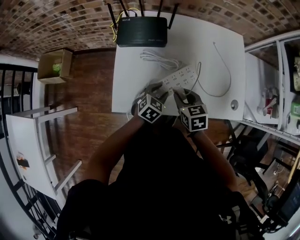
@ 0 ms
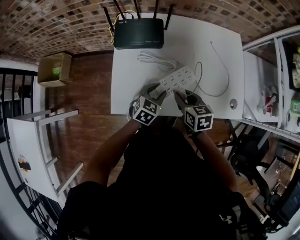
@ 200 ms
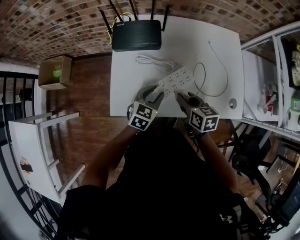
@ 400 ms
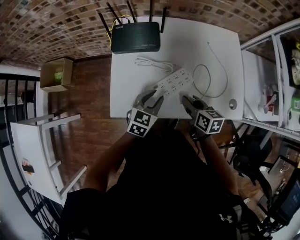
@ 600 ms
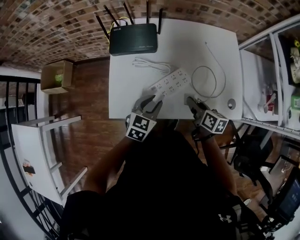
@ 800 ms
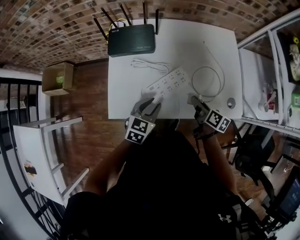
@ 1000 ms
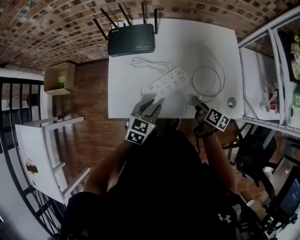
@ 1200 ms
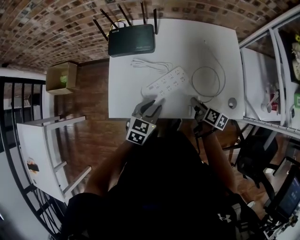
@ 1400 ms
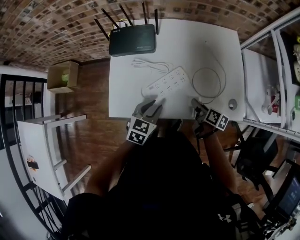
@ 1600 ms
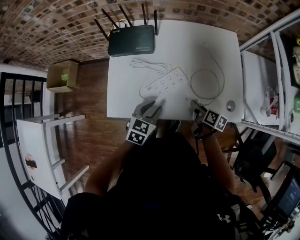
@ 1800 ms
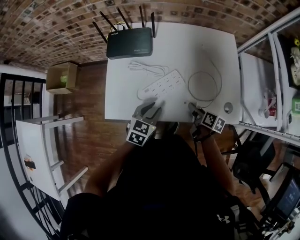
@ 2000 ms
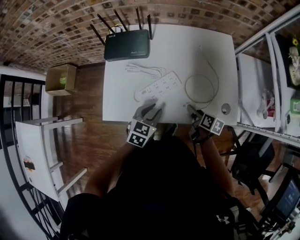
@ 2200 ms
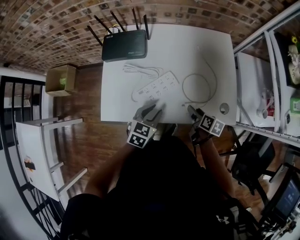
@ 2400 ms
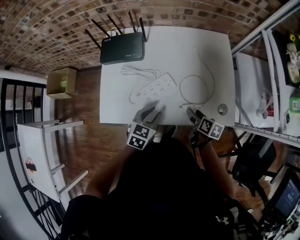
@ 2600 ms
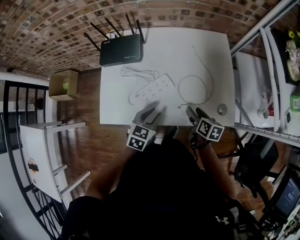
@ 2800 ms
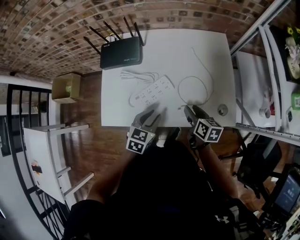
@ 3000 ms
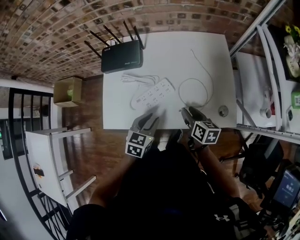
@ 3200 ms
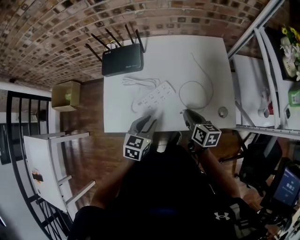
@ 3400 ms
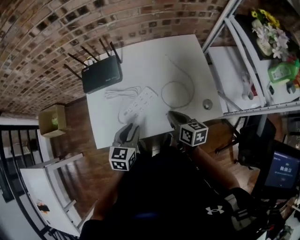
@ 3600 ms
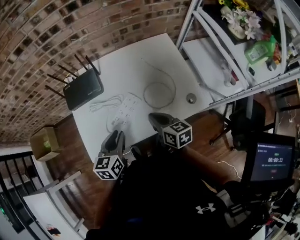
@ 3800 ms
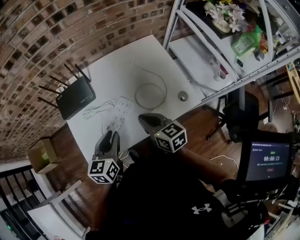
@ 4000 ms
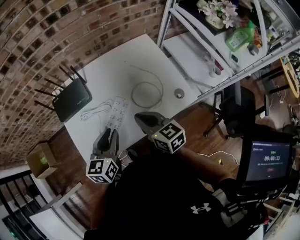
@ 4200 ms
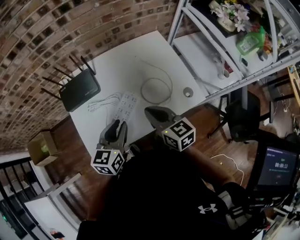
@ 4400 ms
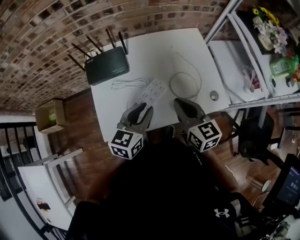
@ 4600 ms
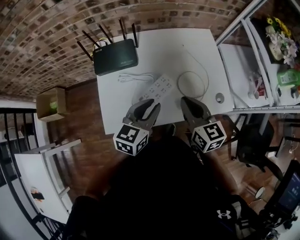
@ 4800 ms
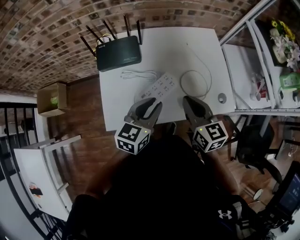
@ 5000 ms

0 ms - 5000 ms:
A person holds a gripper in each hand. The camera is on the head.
0 ms - 1600 ms: The right gripper goes some 15 cm to the right, and twists roughly 50 degrees clockwise, seen from behind, while the left gripper goes about 5 cm upward.
1600 ms - 3400 ms: The right gripper is displaced upward by about 10 cm, and opens, then closes once more.
3400 ms - 5000 ms: The right gripper shifts some 15 cm upward and to the left, and rotates approximately 30 degrees. Meanwhile the left gripper moves upward, some 10 cm.

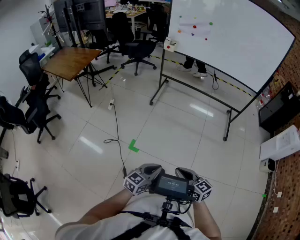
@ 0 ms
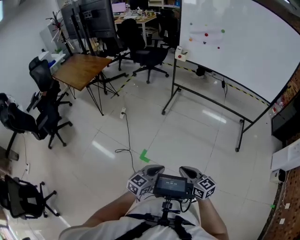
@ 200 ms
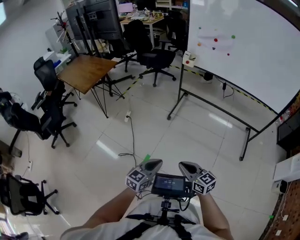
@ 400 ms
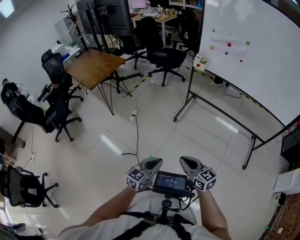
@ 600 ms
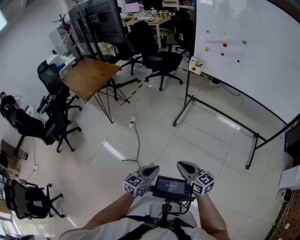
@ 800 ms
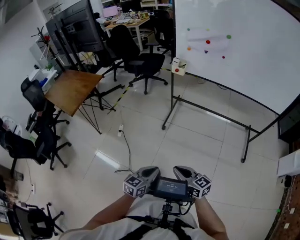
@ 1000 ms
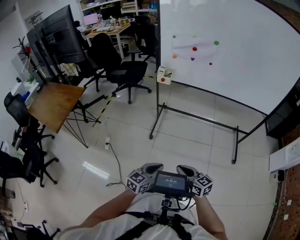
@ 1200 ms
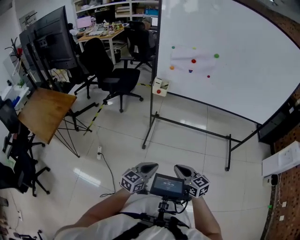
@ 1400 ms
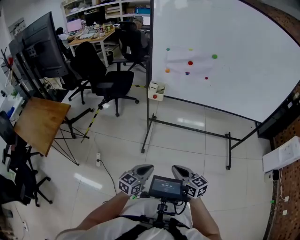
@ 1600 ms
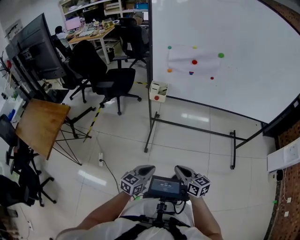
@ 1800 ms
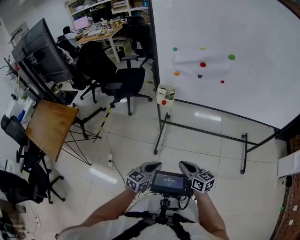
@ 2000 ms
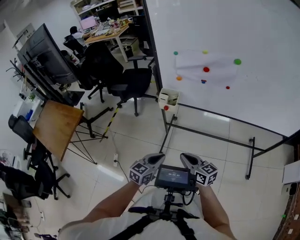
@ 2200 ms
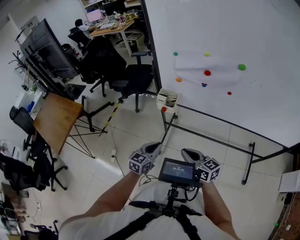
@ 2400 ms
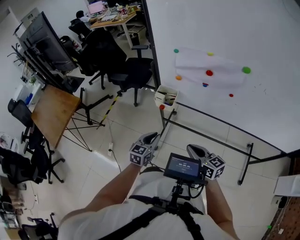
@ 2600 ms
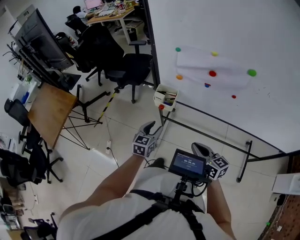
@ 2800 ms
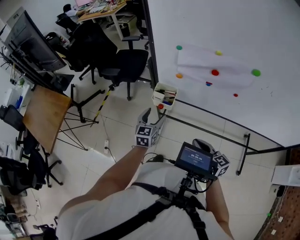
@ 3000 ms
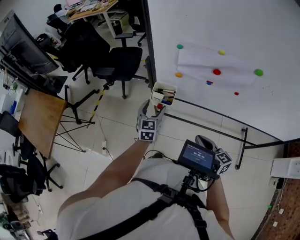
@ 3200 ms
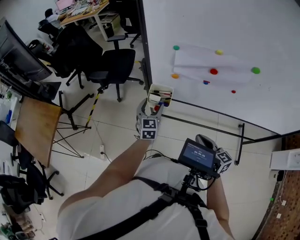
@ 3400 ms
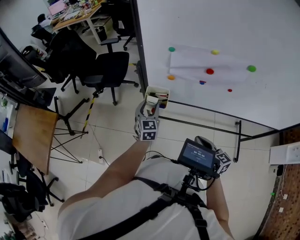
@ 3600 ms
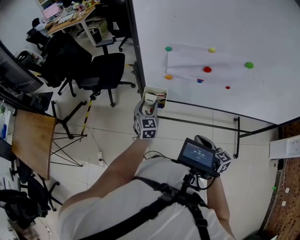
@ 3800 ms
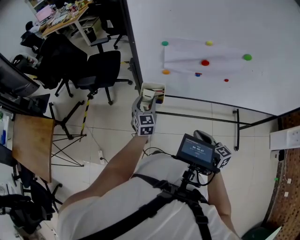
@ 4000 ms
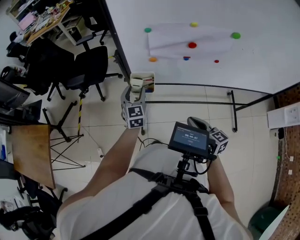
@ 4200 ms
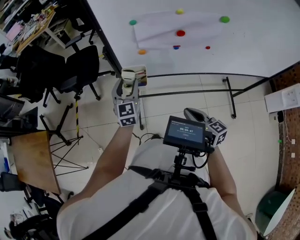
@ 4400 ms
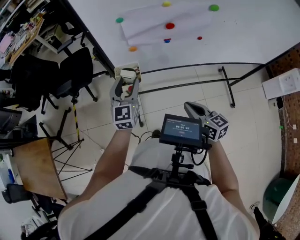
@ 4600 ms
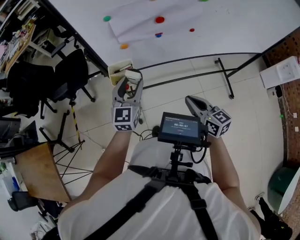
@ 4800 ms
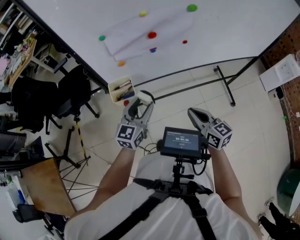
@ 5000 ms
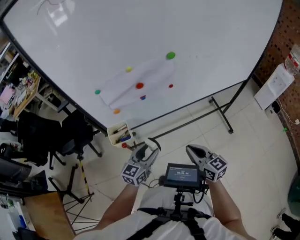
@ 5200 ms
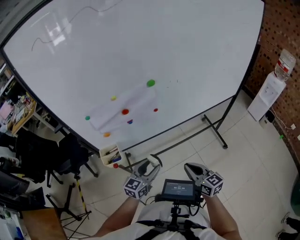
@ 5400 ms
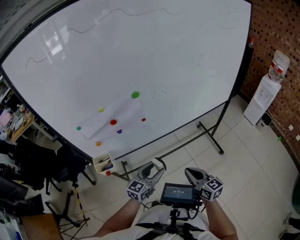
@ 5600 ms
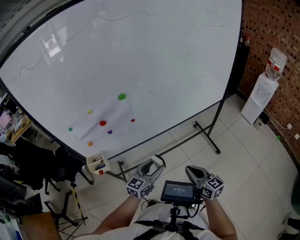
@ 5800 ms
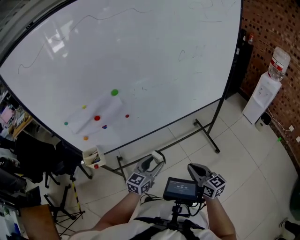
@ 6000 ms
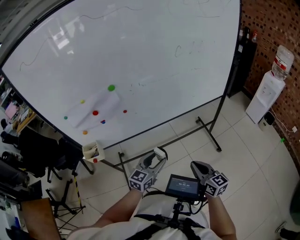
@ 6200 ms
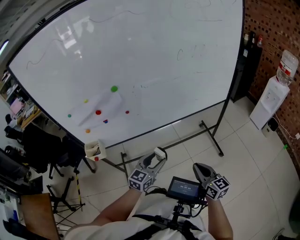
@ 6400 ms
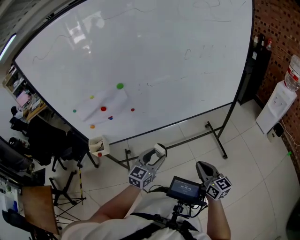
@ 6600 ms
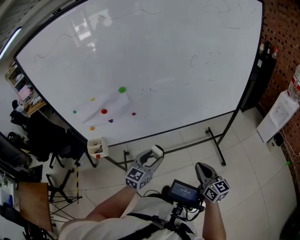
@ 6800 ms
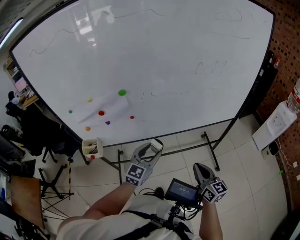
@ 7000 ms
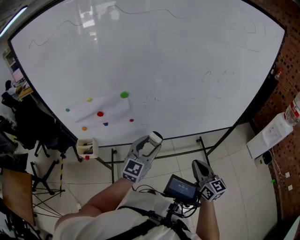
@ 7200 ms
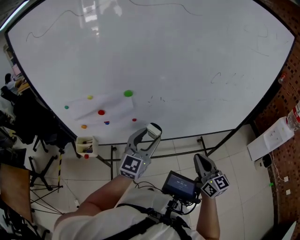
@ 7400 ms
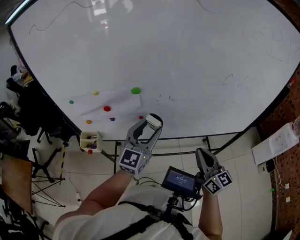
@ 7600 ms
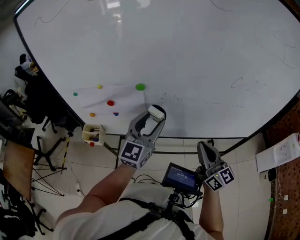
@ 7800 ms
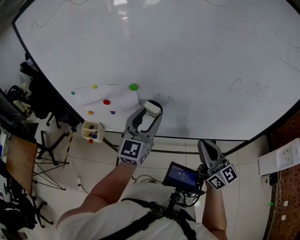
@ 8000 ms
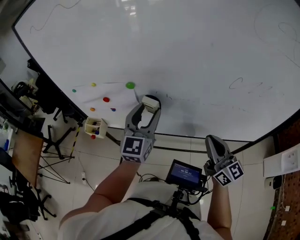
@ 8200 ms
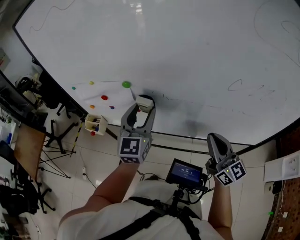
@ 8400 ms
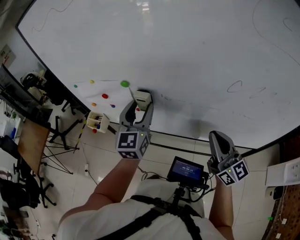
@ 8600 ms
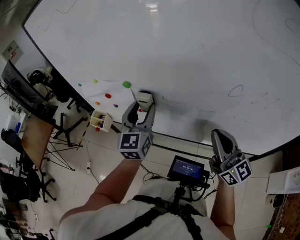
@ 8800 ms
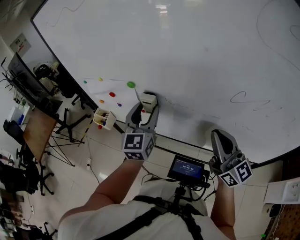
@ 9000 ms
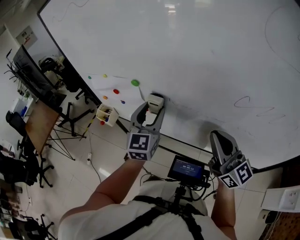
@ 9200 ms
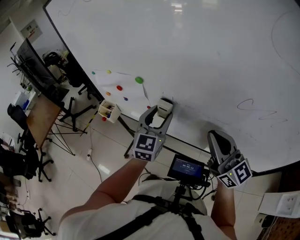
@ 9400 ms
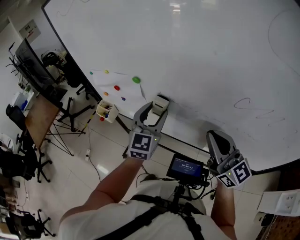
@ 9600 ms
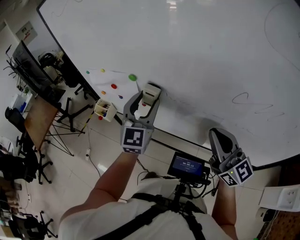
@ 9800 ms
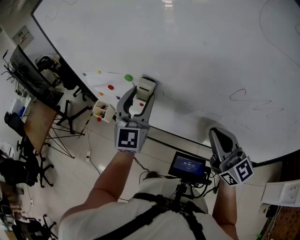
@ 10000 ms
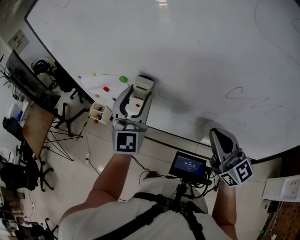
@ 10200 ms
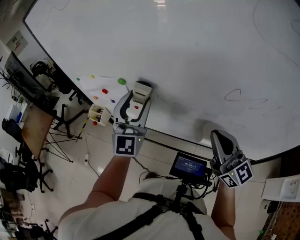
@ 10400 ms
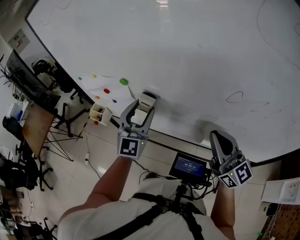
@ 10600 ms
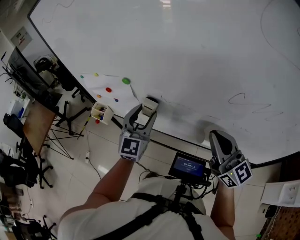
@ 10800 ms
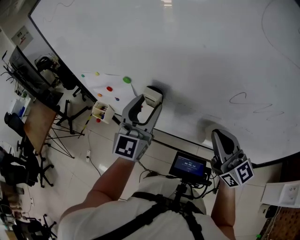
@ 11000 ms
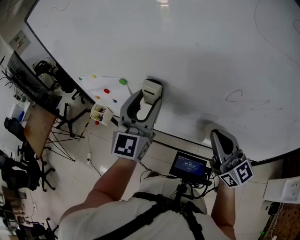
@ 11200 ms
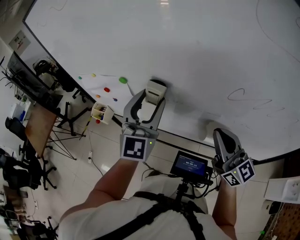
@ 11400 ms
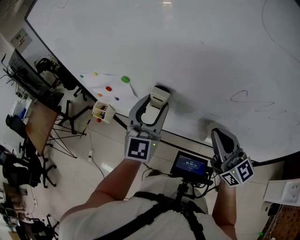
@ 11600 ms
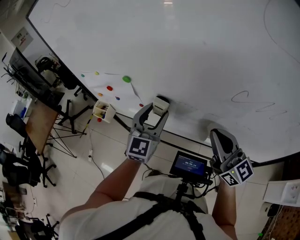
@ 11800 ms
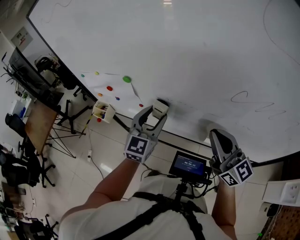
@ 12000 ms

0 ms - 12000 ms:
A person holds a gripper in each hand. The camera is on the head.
0 ms - 1600 ms: The pair of grippers is taken forward, approximately 70 cm.
1600 ms - 3000 ms: The pair of grippers is taken forward, about 50 cm. The left gripper rotates approximately 30 degrees, and opens its fingers.
3000 ms - 4400 ms: The left gripper goes roughly 10 cm forward and upward.
4400 ms - 6000 ms: The right gripper shifts by roughly 40 cm, and swivels about 30 degrees. Meanwhile the left gripper changes place by roughly 50 cm, and rotates some 50 degrees.
6000 ms - 7600 ms: The two grippers go roughly 25 cm forward and upward. The left gripper changes its angle by roughly 30 degrees.
7600 ms - 9000 ms: The right gripper changes place by roughly 20 cm, and swivels some 30 degrees, while the left gripper moves roughly 10 cm, and turns by some 40 degrees.
9000 ms - 10400 ms: The left gripper moves upward, some 5 cm, and turns by roughly 30 degrees.
10400 ms - 12000 ms: The left gripper goes up and down, some 10 cm each way, reversing 2 times, and turns by roughly 30 degrees.

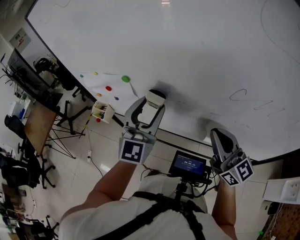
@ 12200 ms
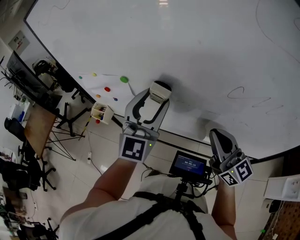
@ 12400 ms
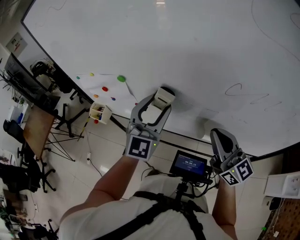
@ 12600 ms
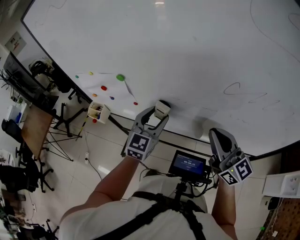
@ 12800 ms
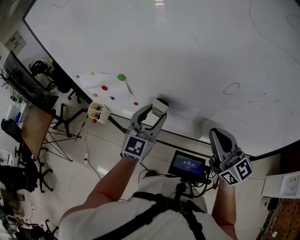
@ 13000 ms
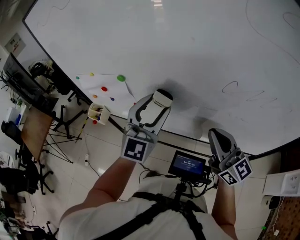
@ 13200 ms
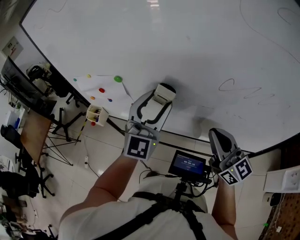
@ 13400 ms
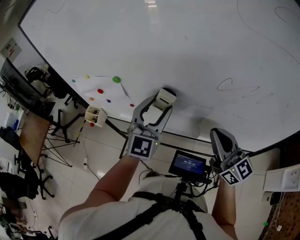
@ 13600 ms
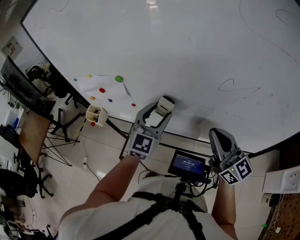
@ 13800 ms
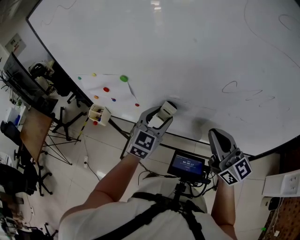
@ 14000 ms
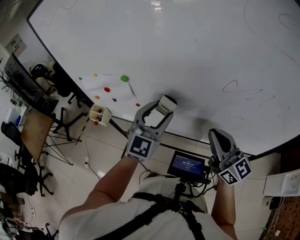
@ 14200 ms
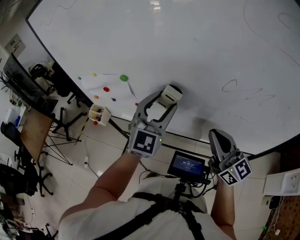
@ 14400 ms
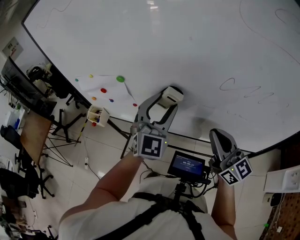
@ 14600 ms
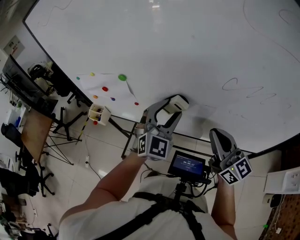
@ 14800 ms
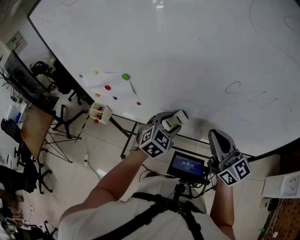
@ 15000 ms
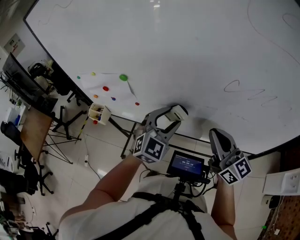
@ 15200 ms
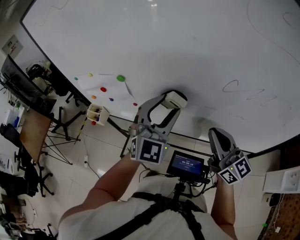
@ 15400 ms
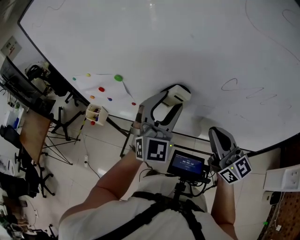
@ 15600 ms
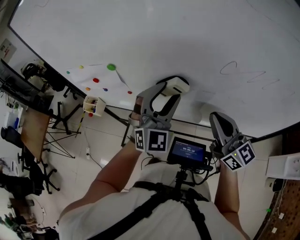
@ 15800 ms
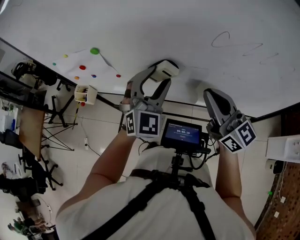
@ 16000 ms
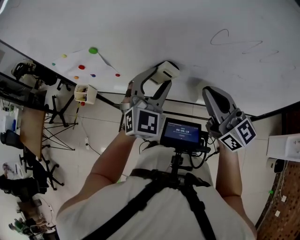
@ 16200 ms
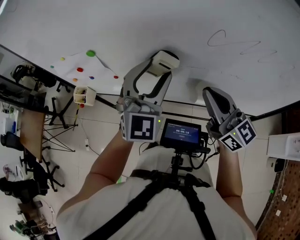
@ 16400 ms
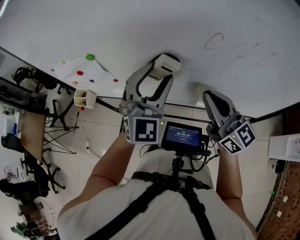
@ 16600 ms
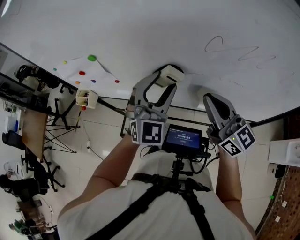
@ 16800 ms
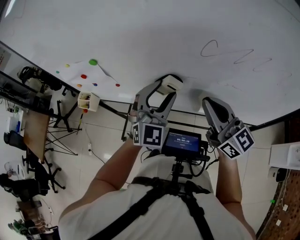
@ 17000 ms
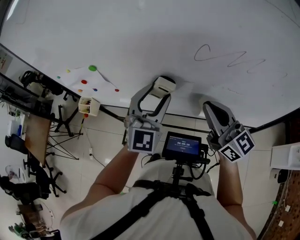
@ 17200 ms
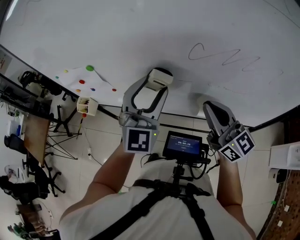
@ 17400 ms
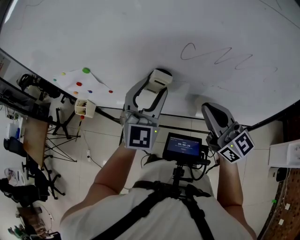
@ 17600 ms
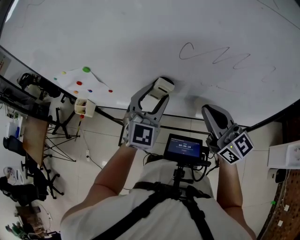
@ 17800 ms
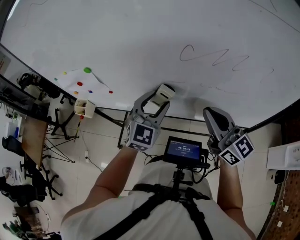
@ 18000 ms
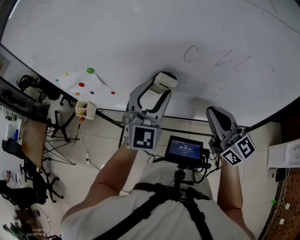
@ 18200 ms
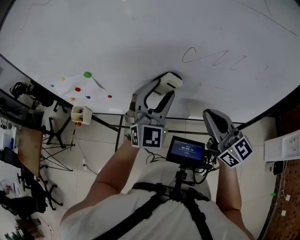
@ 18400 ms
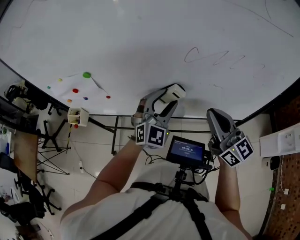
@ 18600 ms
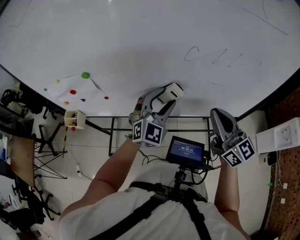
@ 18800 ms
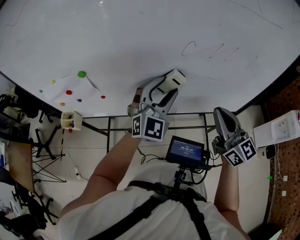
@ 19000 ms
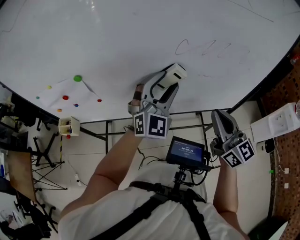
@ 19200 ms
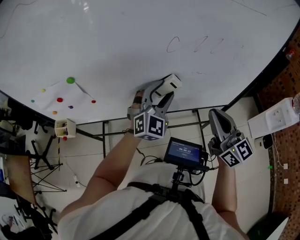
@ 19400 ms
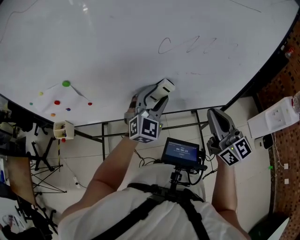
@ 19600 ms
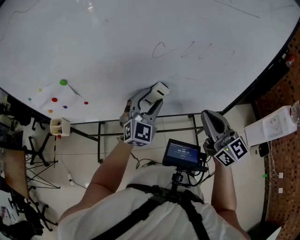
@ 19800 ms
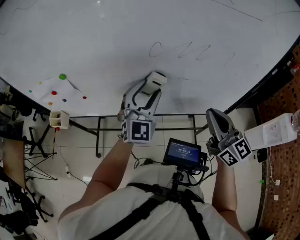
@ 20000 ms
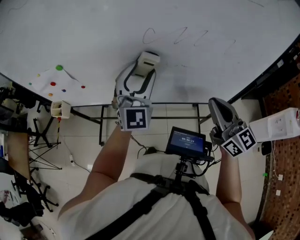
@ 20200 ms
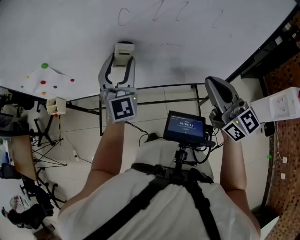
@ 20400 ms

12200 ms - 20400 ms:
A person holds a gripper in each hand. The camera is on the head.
12200 ms - 13800 ms: The left gripper moves up and down over some 15 cm, changing direction 2 times.
13800 ms - 15400 ms: The left gripper moves up and down over roughly 15 cm, changing direction 2 times.
15400 ms - 17200 ms: The left gripper moves up and down over roughly 10 cm, changing direction 3 times. Meanwhile the right gripper changes place by approximately 5 cm.
17200 ms - 18800 ms: The left gripper swings up and down, approximately 10 cm each way, with 3 reversals, while the right gripper moves backward, about 5 cm.
18800 ms - 20400 ms: The left gripper swings up and down, about 10 cm each way, with 2 reversals, and changes its angle by roughly 30 degrees; the right gripper heads to the right, covering roughly 15 cm.
